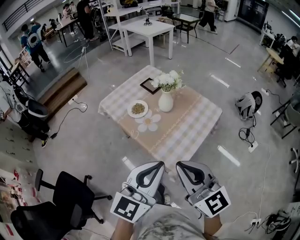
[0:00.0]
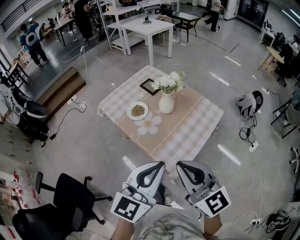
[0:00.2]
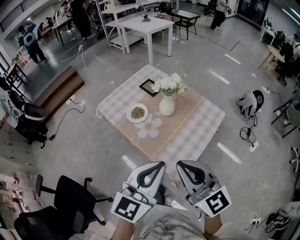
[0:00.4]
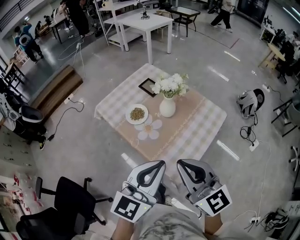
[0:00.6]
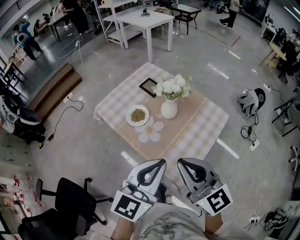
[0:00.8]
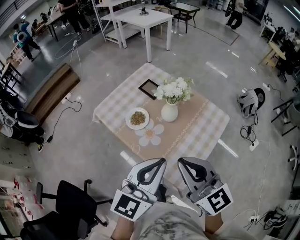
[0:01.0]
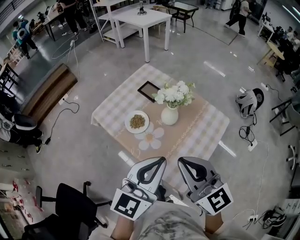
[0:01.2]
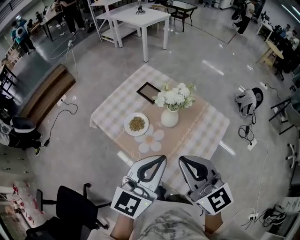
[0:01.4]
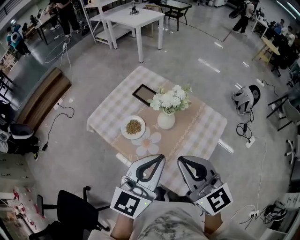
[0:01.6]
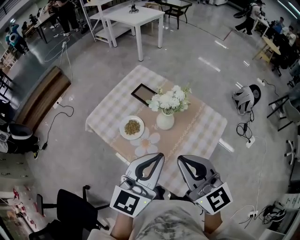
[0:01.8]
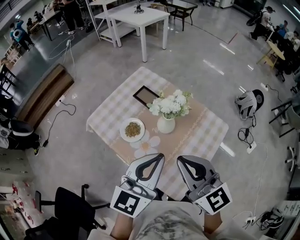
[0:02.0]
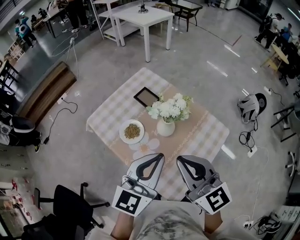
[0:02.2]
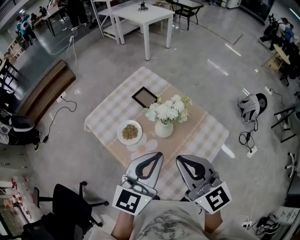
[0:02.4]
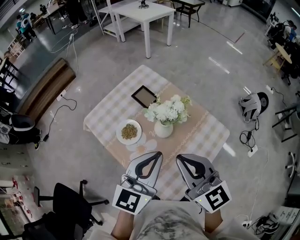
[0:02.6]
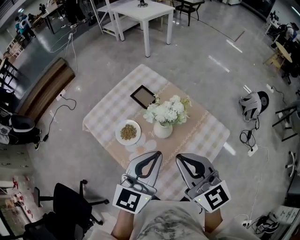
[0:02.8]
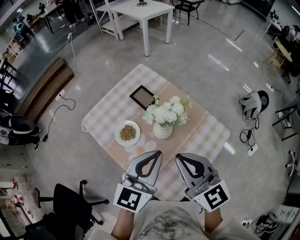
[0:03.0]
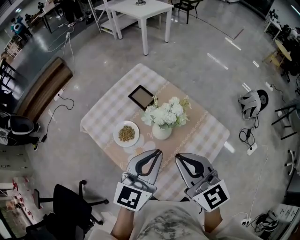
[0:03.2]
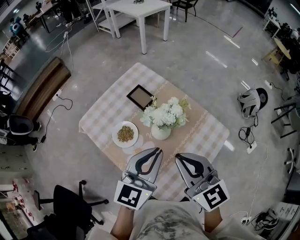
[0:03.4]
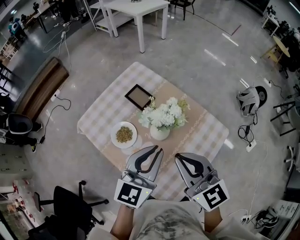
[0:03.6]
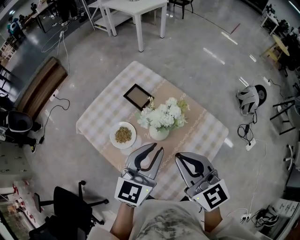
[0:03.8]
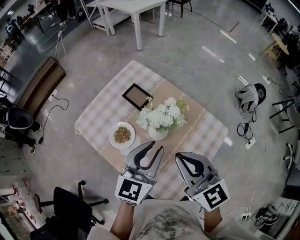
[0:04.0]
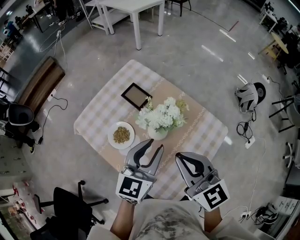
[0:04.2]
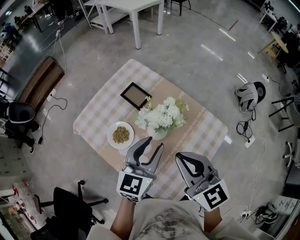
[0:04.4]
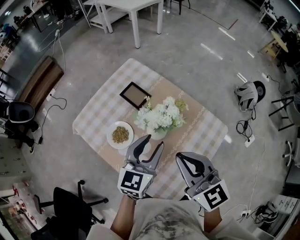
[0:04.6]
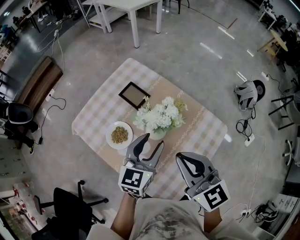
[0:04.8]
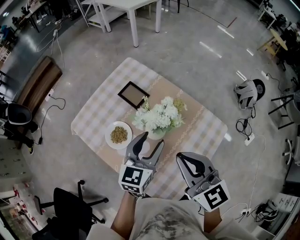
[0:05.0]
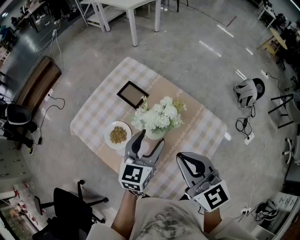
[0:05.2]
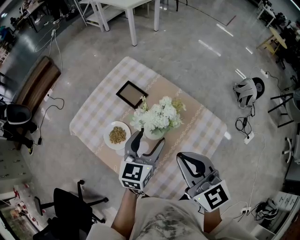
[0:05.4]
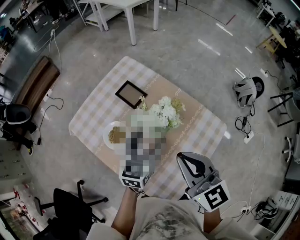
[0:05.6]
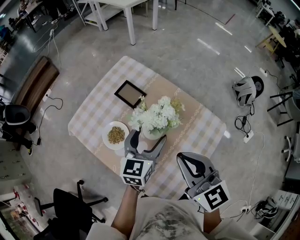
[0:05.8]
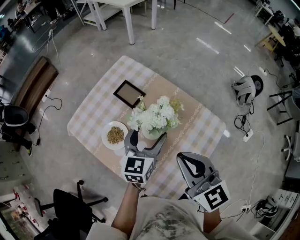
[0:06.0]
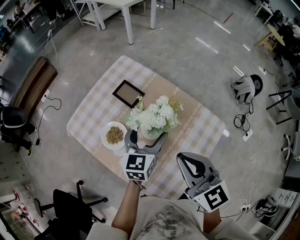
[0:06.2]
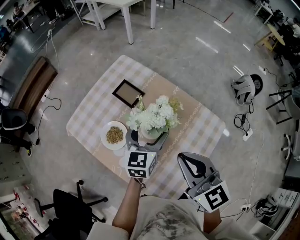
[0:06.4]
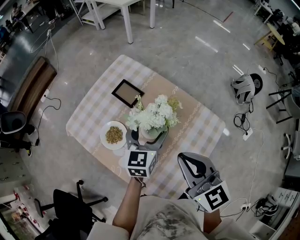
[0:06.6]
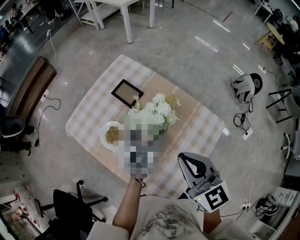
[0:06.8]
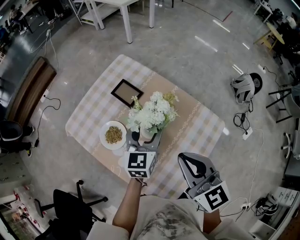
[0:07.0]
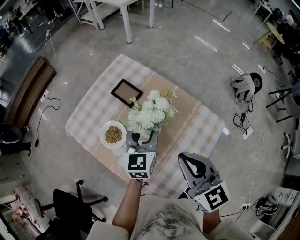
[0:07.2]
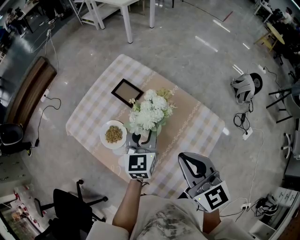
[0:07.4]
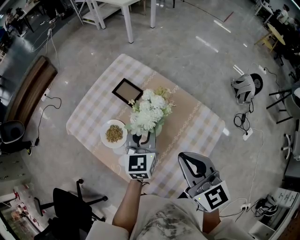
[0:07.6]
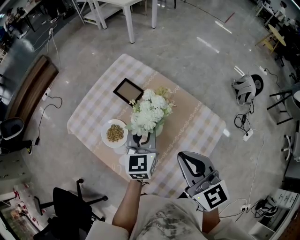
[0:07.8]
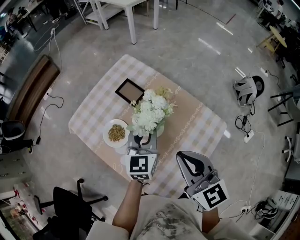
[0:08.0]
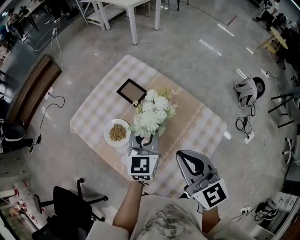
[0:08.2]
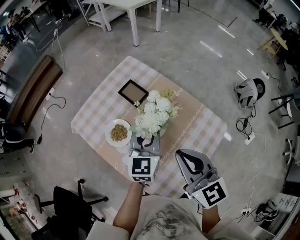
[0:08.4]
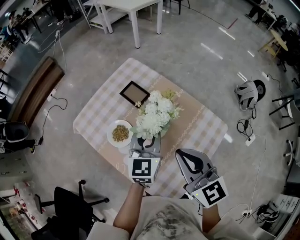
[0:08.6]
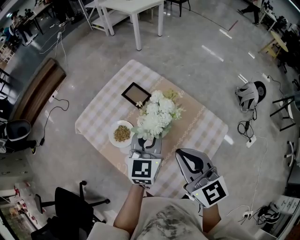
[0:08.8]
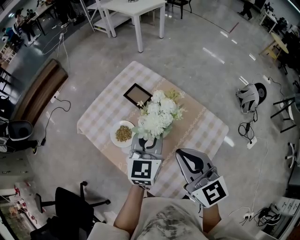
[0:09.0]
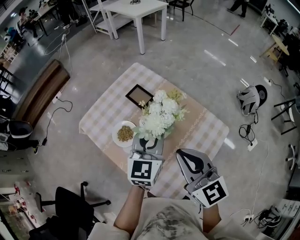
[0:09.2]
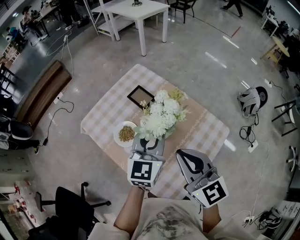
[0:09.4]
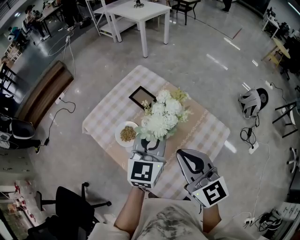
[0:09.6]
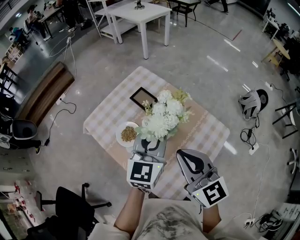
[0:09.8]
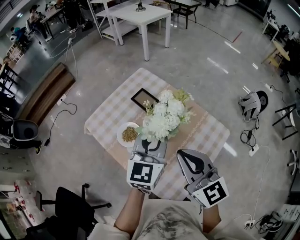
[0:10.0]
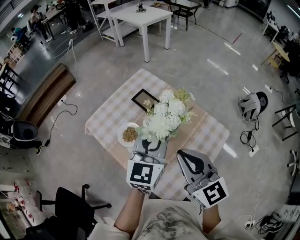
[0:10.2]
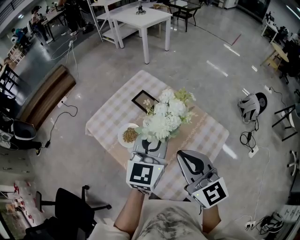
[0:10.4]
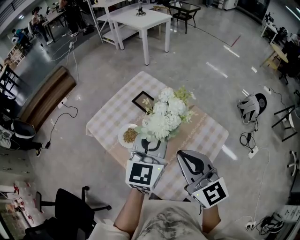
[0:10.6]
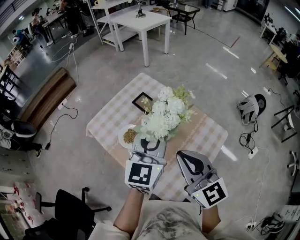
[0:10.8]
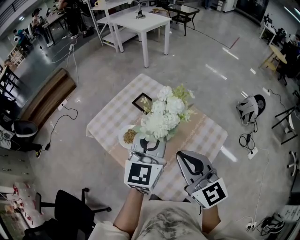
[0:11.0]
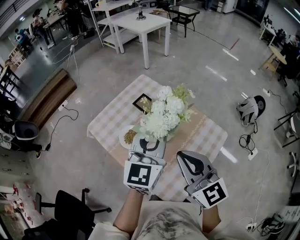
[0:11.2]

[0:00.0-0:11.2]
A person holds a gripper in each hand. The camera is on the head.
0:00.0 to 0:01.6: Both grippers move forward, roughly 20 cm.
0:01.6 to 0:03.2: The left gripper goes some 10 cm forward and downward. Meanwhile the right gripper is displaced forward by about 10 cm.
0:03.2 to 0:04.8: The left gripper travels downward and forward by roughly 10 cm, and opens its fingers.
0:04.8 to 0:06.4: The left gripper is displaced forward by approximately 5 cm, and opens up.
0:06.4 to 0:08.0: The left gripper closes up.
0:08.0 to 0:09.6: The left gripper shifts about 10 cm upward, while the right gripper changes place by about 5 cm.
0:09.6 to 0:11.2: The left gripper heads upward, covering some 10 cm.

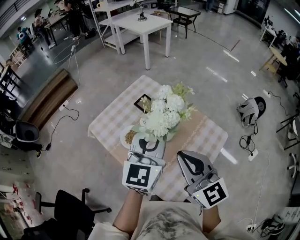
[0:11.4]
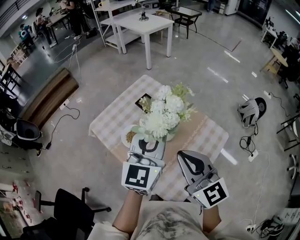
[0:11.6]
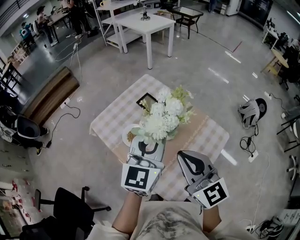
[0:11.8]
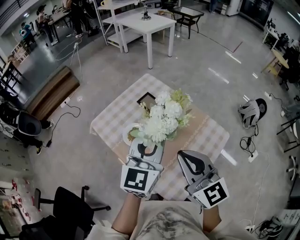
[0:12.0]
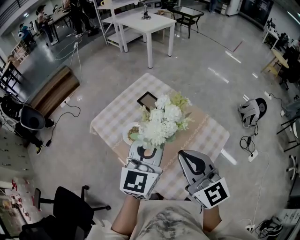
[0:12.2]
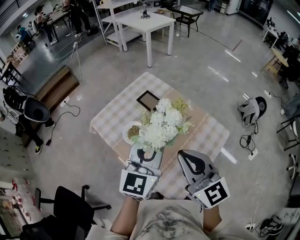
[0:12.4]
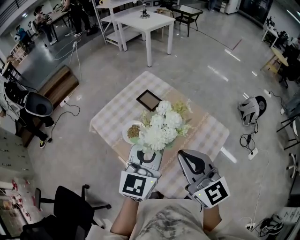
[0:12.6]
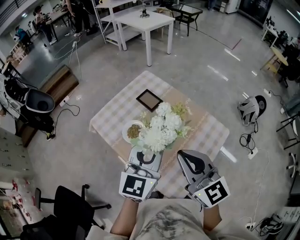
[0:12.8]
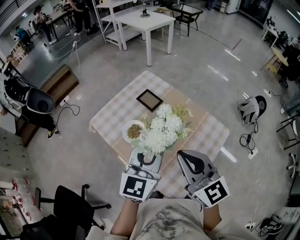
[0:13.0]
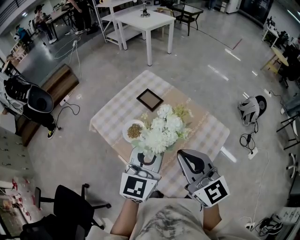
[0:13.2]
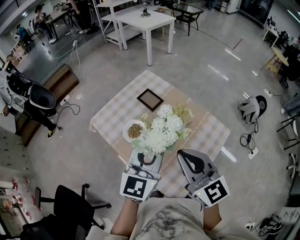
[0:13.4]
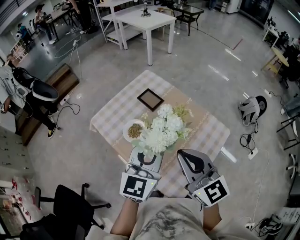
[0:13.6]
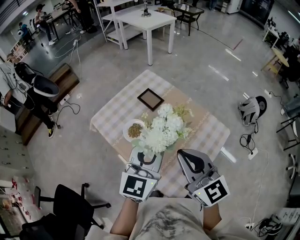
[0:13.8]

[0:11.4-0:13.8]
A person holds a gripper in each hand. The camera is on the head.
0:11.4 to 0:12.6: The left gripper moves backward, roughly 5 cm.
0:12.6 to 0:13.8: The two grippers keep their place.

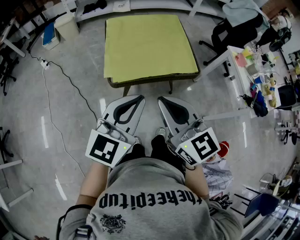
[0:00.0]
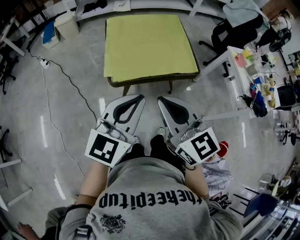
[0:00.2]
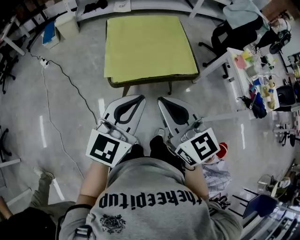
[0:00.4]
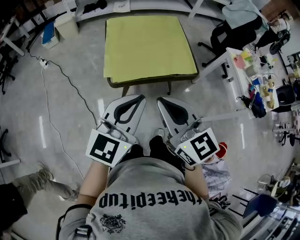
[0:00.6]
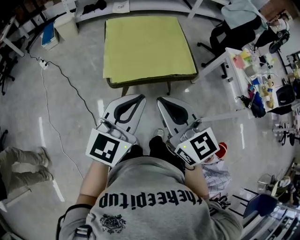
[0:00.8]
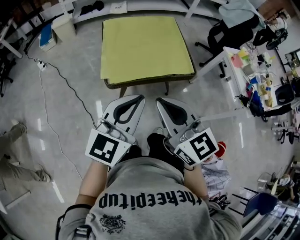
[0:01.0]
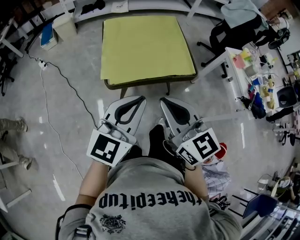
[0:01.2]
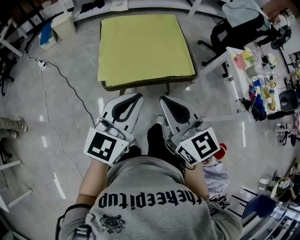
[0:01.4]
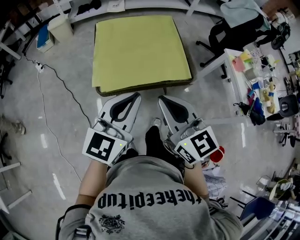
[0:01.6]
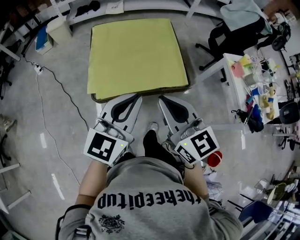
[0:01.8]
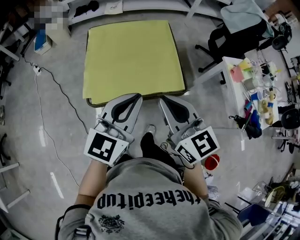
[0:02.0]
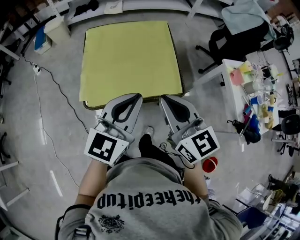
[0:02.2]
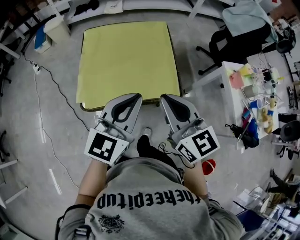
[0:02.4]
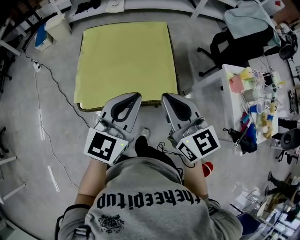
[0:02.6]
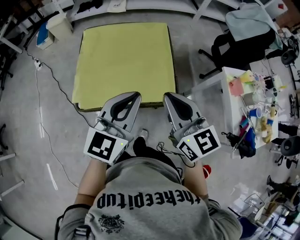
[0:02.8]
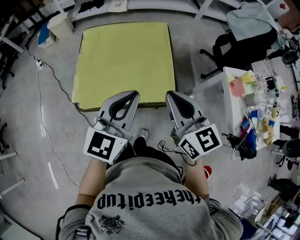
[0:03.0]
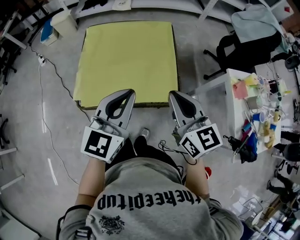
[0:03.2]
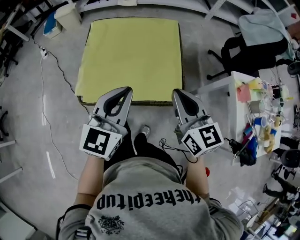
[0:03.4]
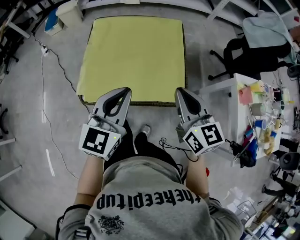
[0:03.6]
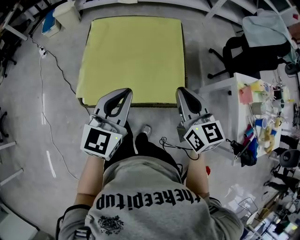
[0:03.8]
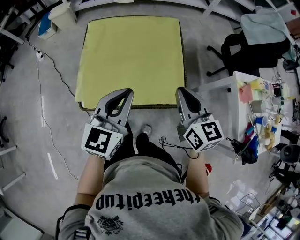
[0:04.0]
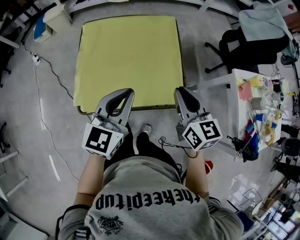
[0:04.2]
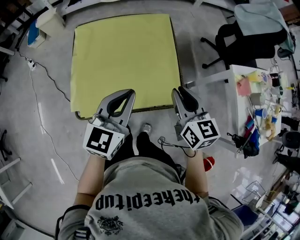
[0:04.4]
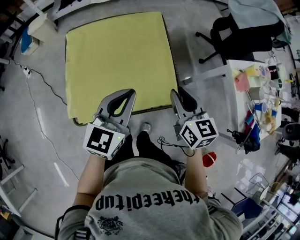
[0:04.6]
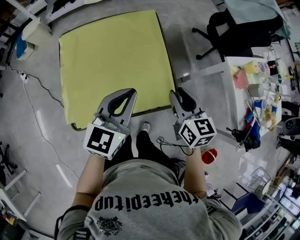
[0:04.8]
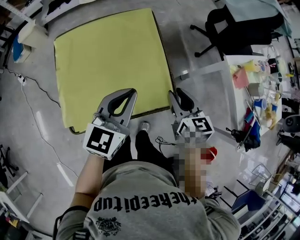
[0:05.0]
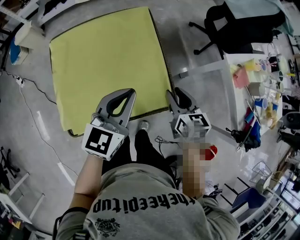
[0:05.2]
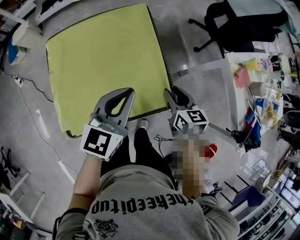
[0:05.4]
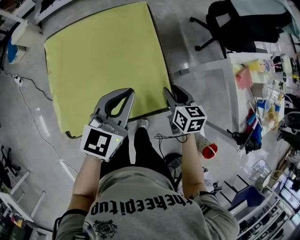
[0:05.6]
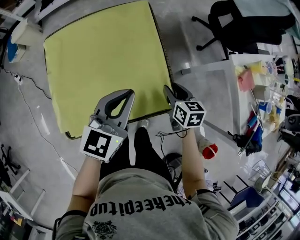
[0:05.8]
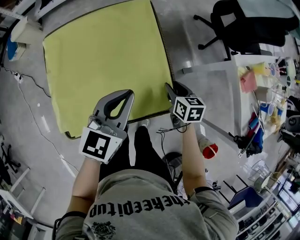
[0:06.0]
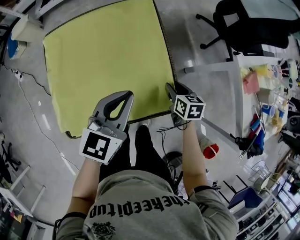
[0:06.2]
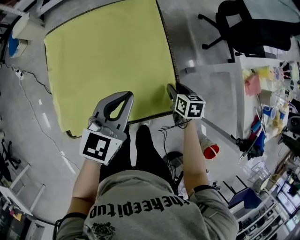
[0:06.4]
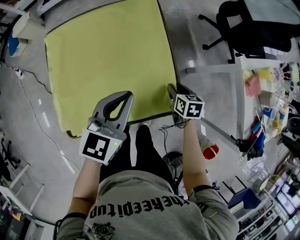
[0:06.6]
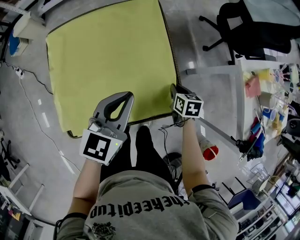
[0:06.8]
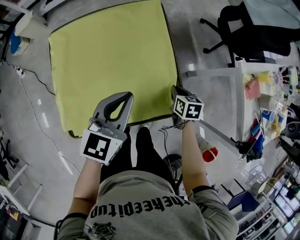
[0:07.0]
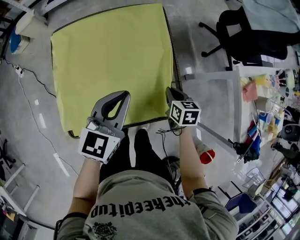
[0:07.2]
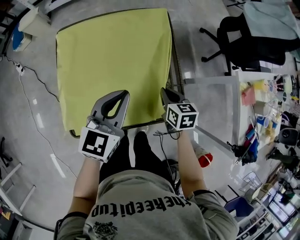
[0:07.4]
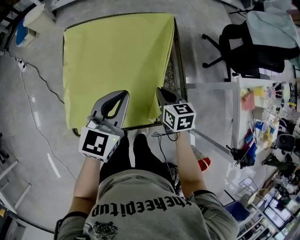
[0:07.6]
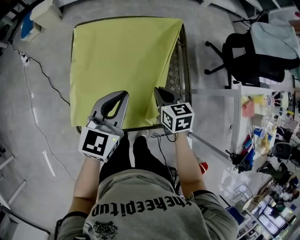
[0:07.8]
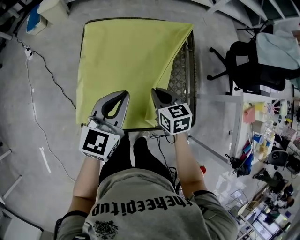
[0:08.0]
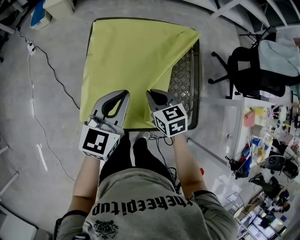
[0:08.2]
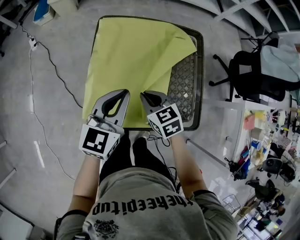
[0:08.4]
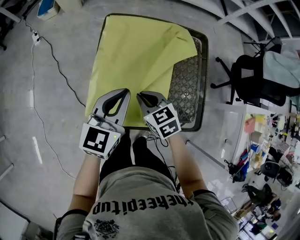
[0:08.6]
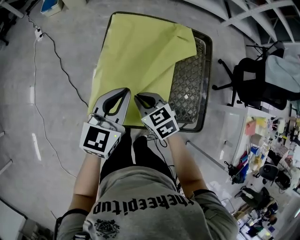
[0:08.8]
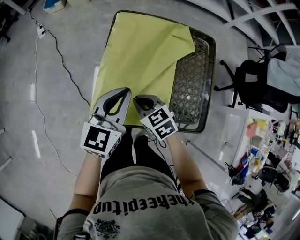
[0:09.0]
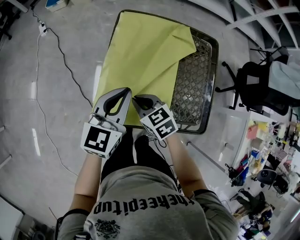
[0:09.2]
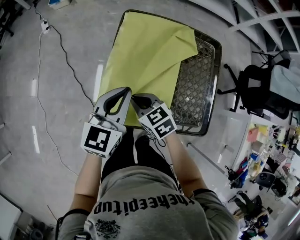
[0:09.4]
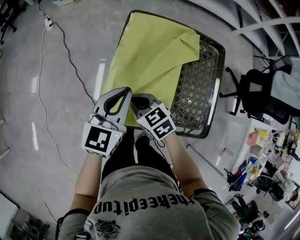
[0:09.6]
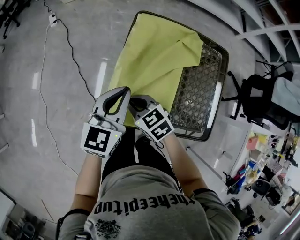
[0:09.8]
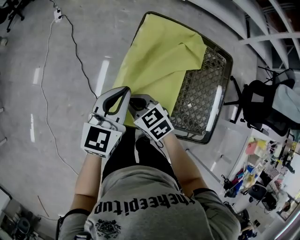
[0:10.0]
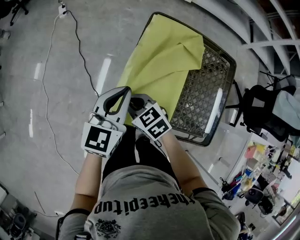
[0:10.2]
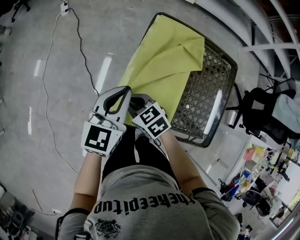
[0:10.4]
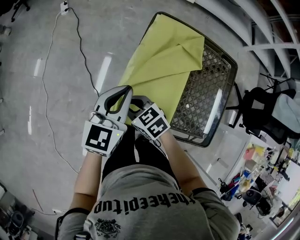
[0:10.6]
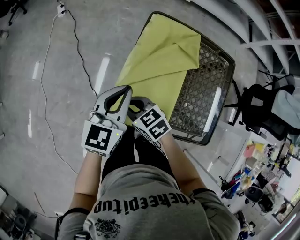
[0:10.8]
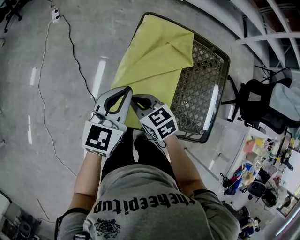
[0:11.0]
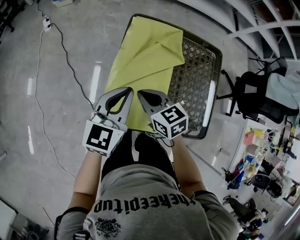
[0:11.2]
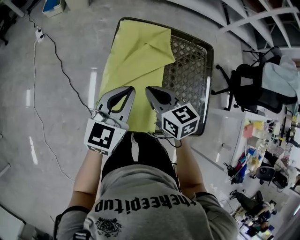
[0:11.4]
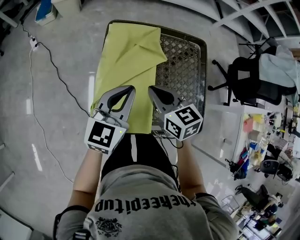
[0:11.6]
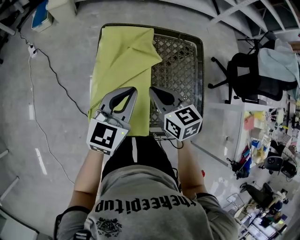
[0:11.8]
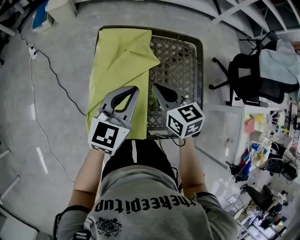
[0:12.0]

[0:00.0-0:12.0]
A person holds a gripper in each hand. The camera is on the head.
0:00.0 to 0:01.6: The left gripper moves forward, some 5 cm. Meanwhile the right gripper travels forward and to the right by roughly 10 cm.
0:01.6 to 0:03.0: Both grippers travel together to the right and forward, some 20 cm.
0:03.0 to 0:04.4: The left gripper shifts approximately 10 cm forward and downward. The right gripper heads downward and forward, covering some 10 cm.
0:04.4 to 0:06.0: The right gripper moves downward and forward, roughly 25 cm, and swivels about 30 degrees, while the left gripper is displaced forward, downward and to the right by roughly 15 cm.
0:06.0 to 0:07.6: The grippers both shift to the left by about 10 cm. The right gripper closes its fingers.
0:07.6 to 0:09.0: The left gripper moves roughly 20 cm; the right gripper changes place by approximately 30 cm, and swivels approximately 40 degrees.
0:09.0 to 0:10.4: The grippers both shift to the left by some 10 cm.
0:10.4 to 0:12.0: The right gripper shifts by roughly 30 cm, and rotates about 40 degrees. Meanwhile the left gripper moves some 20 cm, and changes its angle by some 20 degrees.
